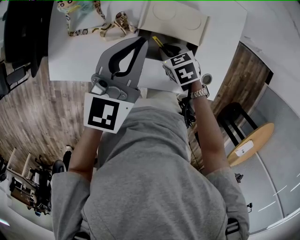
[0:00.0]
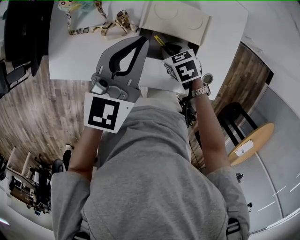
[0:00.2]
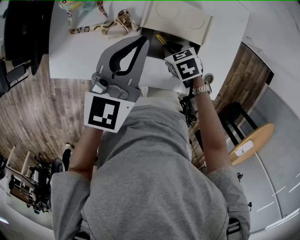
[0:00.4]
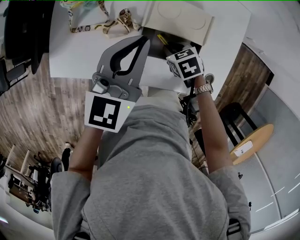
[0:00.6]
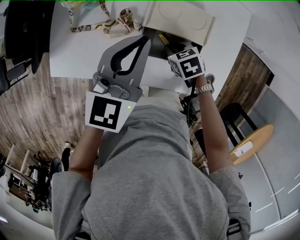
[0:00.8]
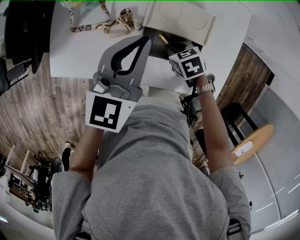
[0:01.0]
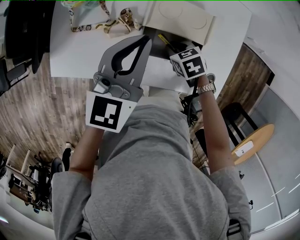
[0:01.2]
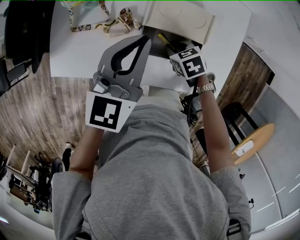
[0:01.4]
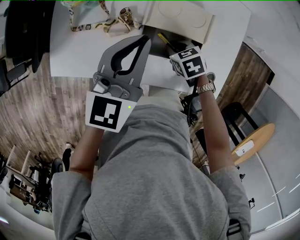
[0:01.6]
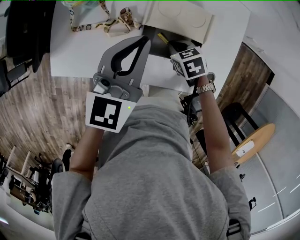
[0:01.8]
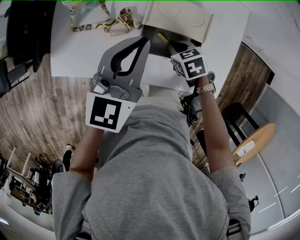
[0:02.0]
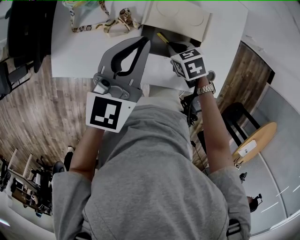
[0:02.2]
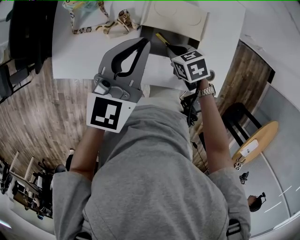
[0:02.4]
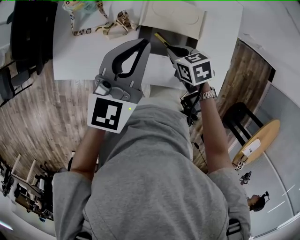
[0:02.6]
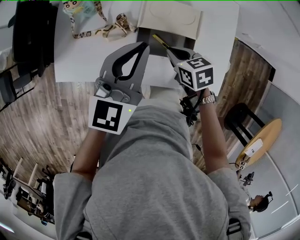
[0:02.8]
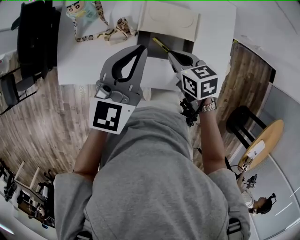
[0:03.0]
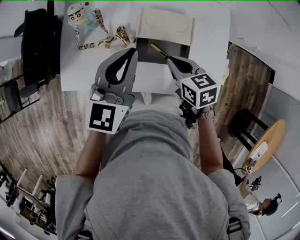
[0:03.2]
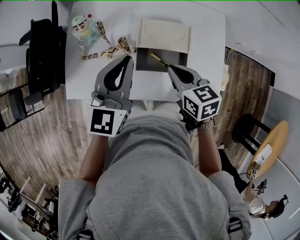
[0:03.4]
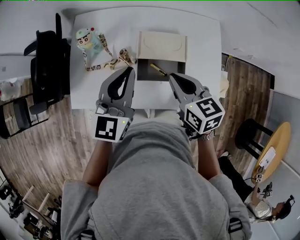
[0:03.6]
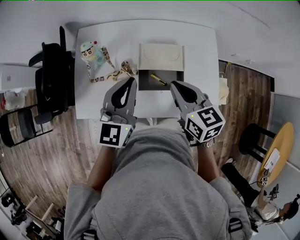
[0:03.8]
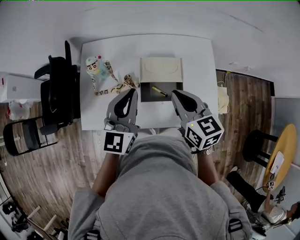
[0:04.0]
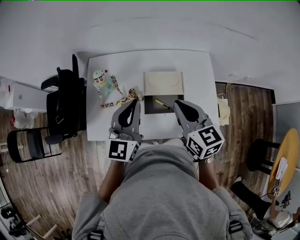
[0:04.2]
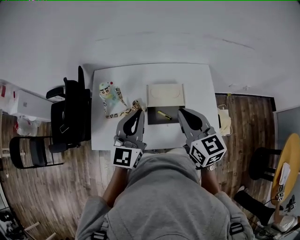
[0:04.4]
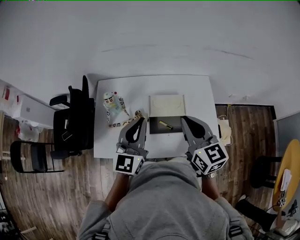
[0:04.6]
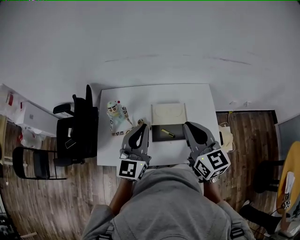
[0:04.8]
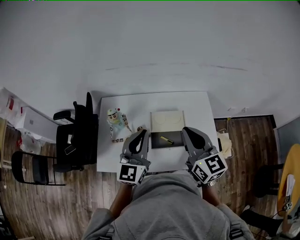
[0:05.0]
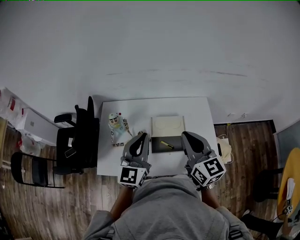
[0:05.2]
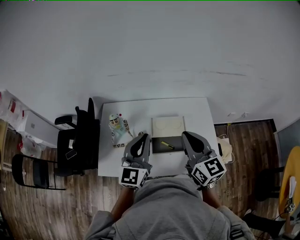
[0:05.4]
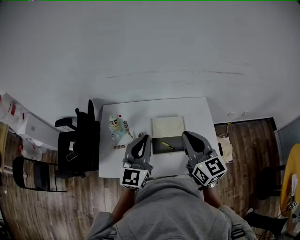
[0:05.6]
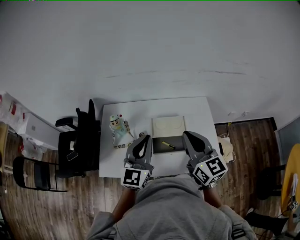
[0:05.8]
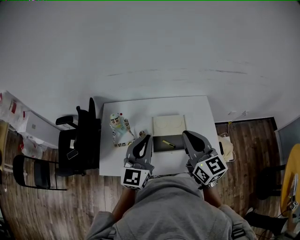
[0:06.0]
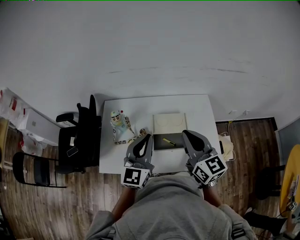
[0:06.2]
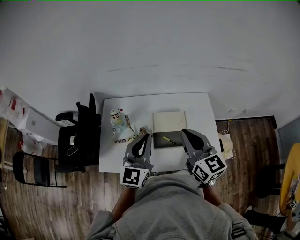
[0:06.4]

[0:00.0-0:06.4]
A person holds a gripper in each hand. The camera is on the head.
0:00.0 to 0:01.6: There are only small adjustments of the grippers.
0:01.6 to 0:03.2: The left gripper changes place by roughly 5 cm. The right gripper shifts approximately 15 cm upward, and changes its angle by some 30 degrees.
0:03.2 to 0:04.8: The left gripper moves upward, about 10 cm; the right gripper moves upward, about 25 cm, and tilts its fingers about 40 degrees upward.
0:04.8 to 0:06.4: There are only small adjustments of the grippers.

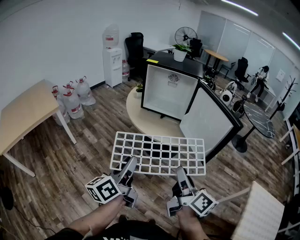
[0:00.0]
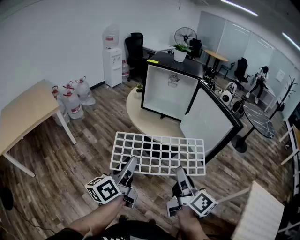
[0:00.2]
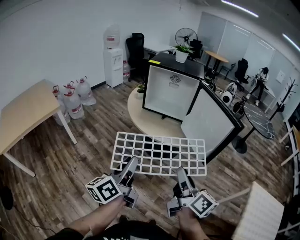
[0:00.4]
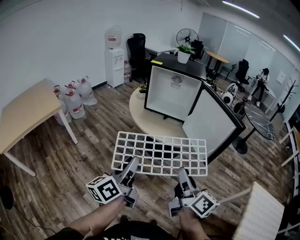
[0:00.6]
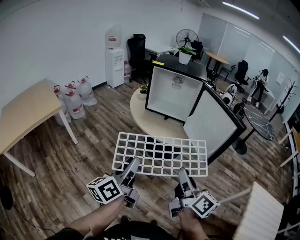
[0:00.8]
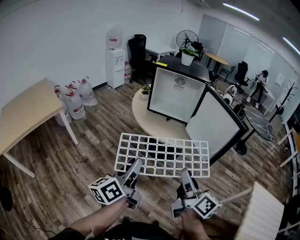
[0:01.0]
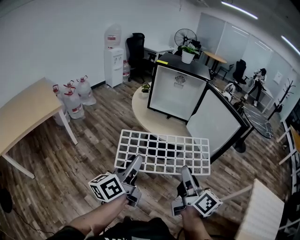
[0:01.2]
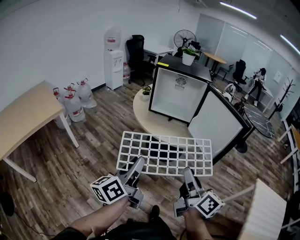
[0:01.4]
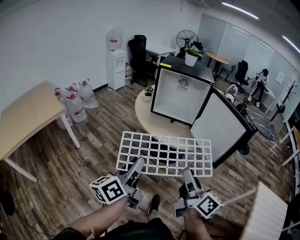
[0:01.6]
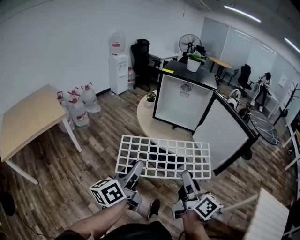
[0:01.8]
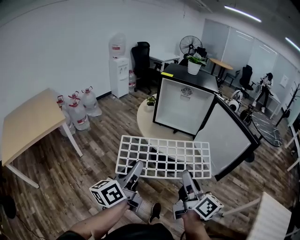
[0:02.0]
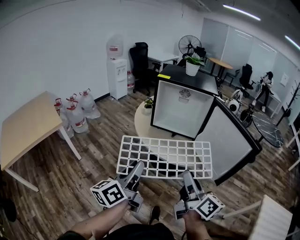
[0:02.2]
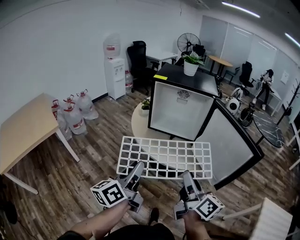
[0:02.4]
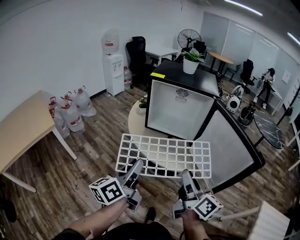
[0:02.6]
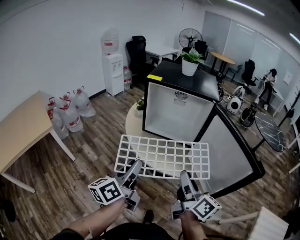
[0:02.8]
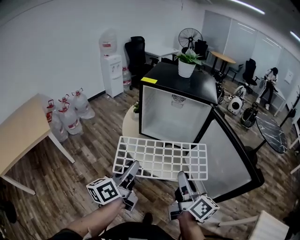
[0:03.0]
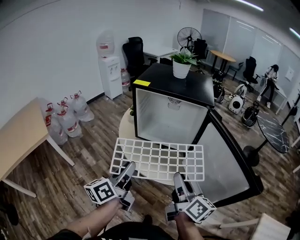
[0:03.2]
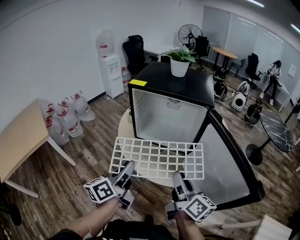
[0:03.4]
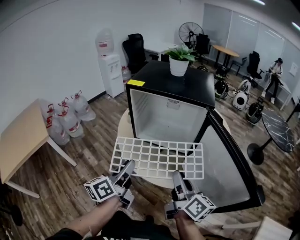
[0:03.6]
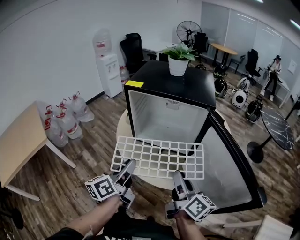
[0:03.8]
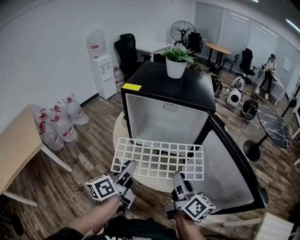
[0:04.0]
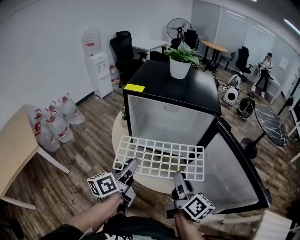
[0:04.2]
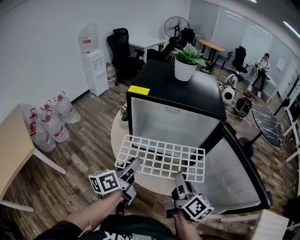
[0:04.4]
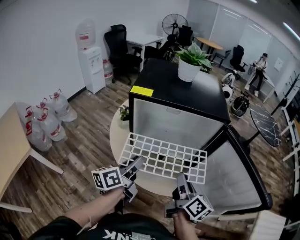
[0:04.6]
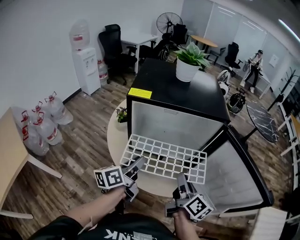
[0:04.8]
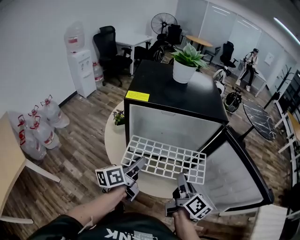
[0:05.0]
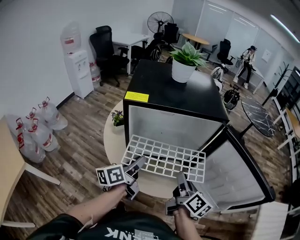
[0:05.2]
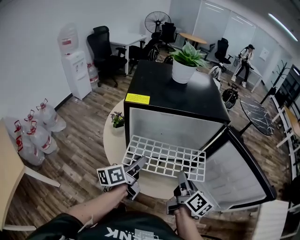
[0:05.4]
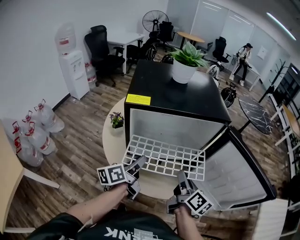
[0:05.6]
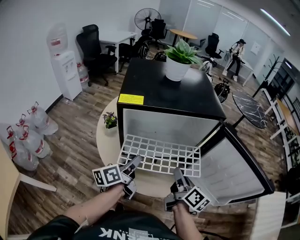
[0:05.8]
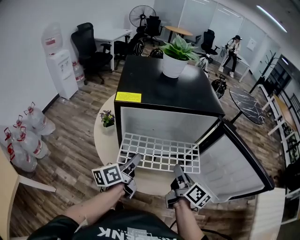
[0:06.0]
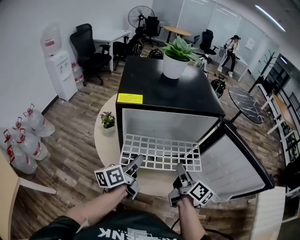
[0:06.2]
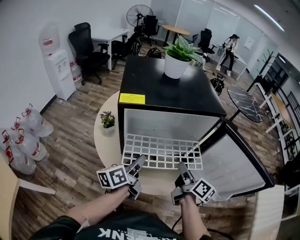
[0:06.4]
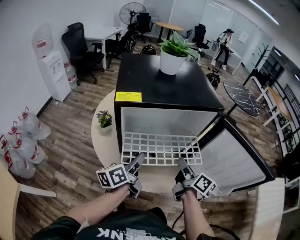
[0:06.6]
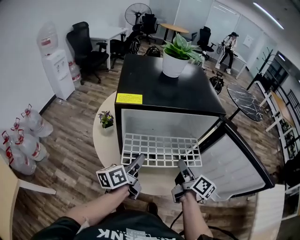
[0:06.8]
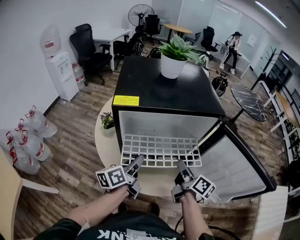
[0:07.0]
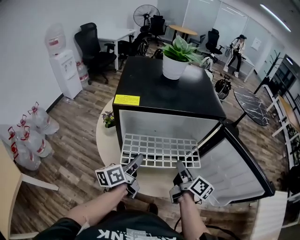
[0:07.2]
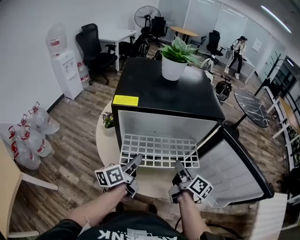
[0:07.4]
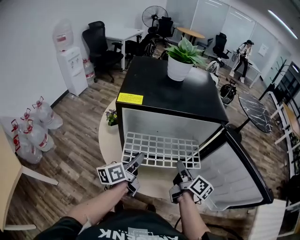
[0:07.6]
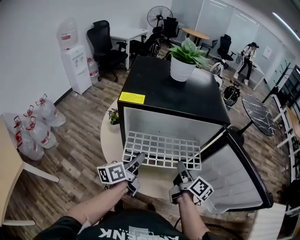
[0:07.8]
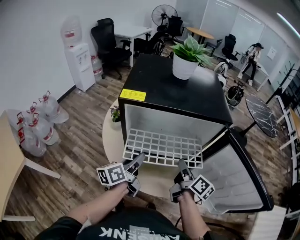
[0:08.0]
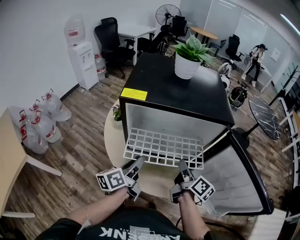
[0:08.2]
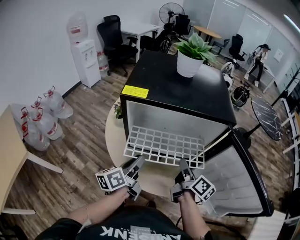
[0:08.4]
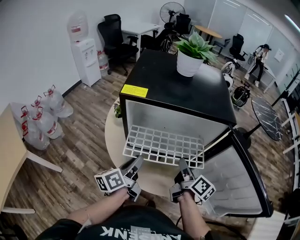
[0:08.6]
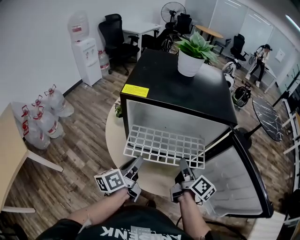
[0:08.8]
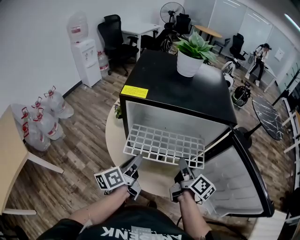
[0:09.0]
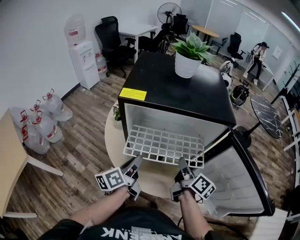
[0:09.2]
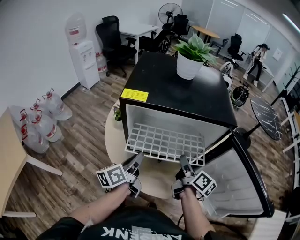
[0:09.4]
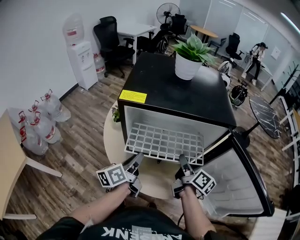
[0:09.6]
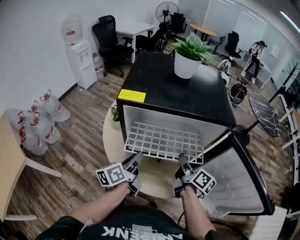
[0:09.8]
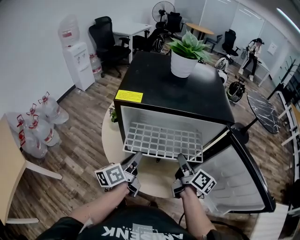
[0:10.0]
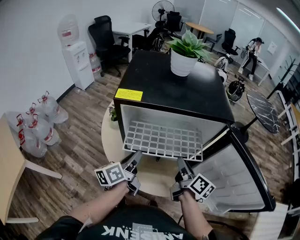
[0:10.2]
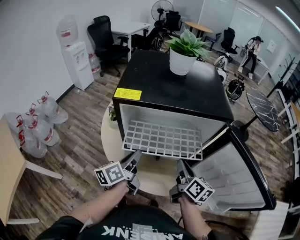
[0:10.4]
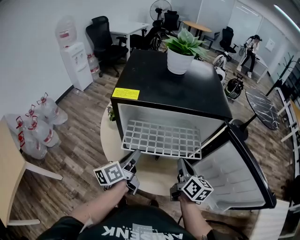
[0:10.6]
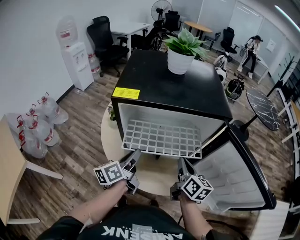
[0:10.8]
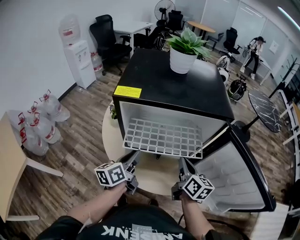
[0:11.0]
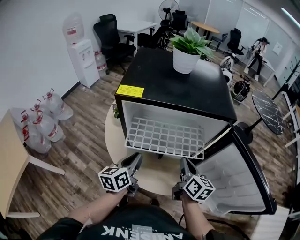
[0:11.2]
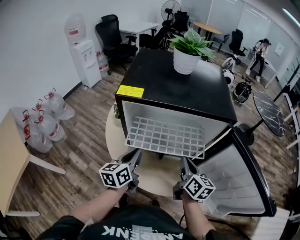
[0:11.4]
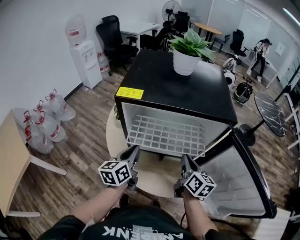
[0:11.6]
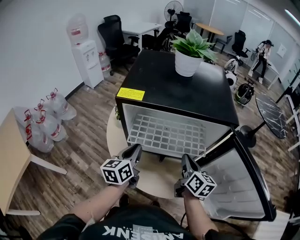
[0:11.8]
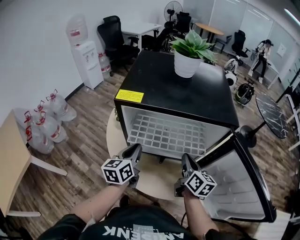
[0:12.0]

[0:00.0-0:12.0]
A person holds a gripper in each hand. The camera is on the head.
0:00.0 to 0:01.6: The grippers both shift to the left by approximately 10 cm.
0:01.6 to 0:03.0: Both grippers move forward, approximately 30 cm.
0:03.0 to 0:04.4: The left gripper moves forward, some 20 cm. The right gripper heads forward and downward, covering about 15 cm.
0:04.4 to 0:06.0: The grippers both shift forward by some 10 cm.
0:06.0 to 0:07.6: The right gripper shifts by some 5 cm.
0:07.6 to 0:10.4: The grippers move only a little.
0:10.4 to 0:12.0: The left gripper swivels about 30 degrees. The right gripper goes about 5 cm forward.

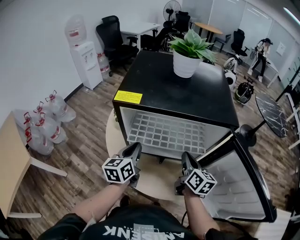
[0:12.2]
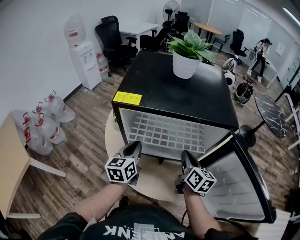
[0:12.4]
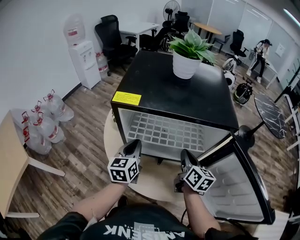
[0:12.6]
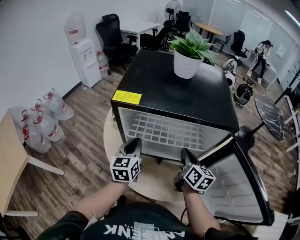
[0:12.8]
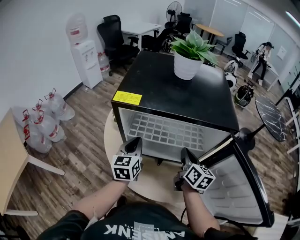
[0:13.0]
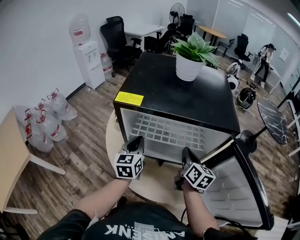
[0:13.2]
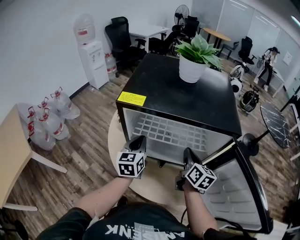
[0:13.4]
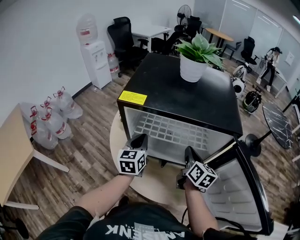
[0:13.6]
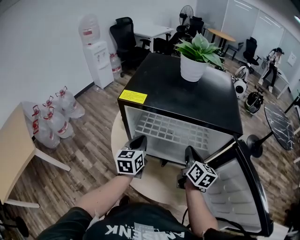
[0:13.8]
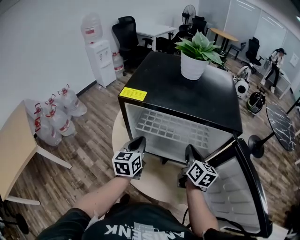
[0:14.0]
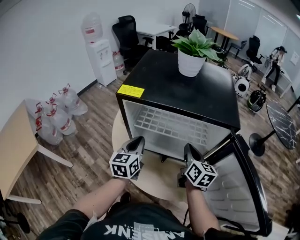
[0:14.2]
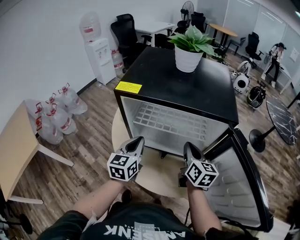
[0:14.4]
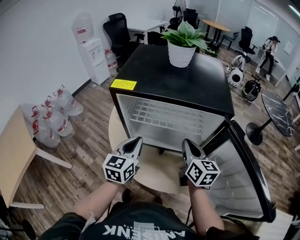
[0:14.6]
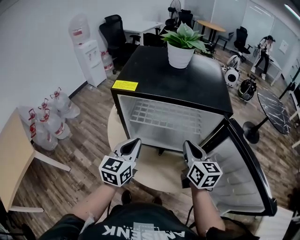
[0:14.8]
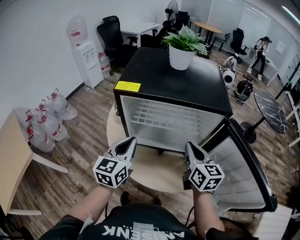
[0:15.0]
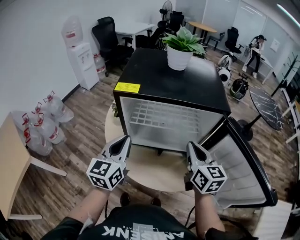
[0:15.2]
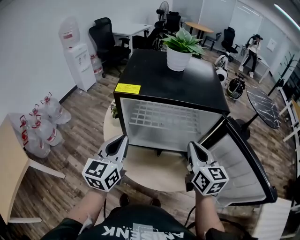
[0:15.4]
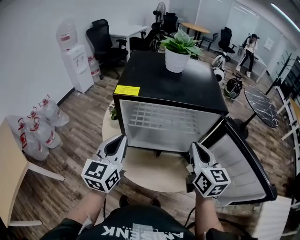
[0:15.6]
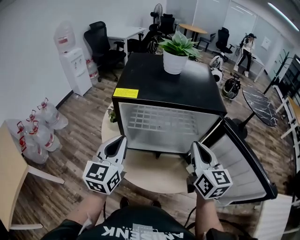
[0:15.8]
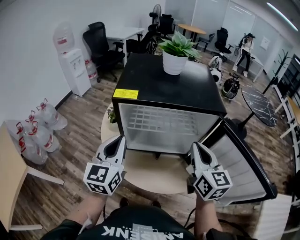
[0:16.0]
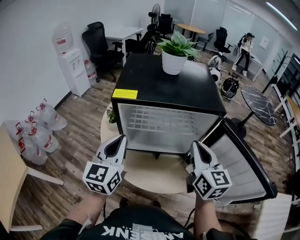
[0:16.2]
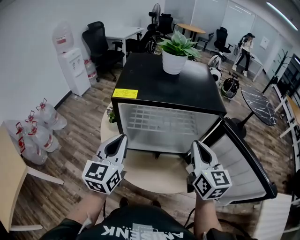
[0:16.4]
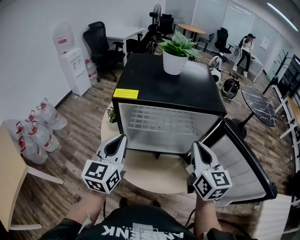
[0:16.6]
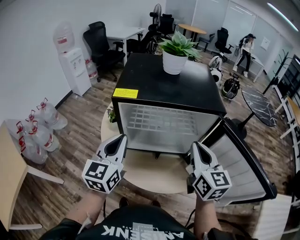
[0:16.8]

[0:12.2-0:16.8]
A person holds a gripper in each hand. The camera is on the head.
0:12.2 to 0:13.8: The right gripper moves forward, about 5 cm.
0:13.8 to 0:15.2: The left gripper is displaced upward and backward by approximately 15 cm. The right gripper travels backward and upward by about 15 cm.
0:15.2 to 0:16.8: The right gripper travels upward by roughly 5 cm.

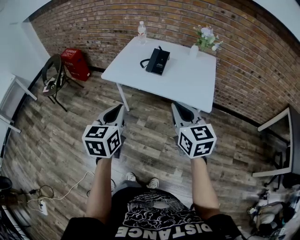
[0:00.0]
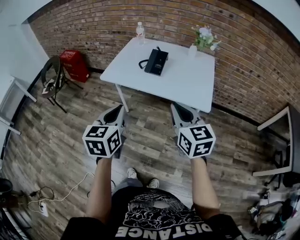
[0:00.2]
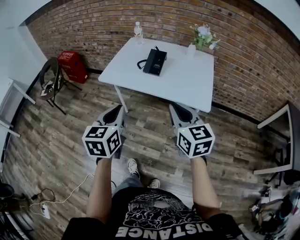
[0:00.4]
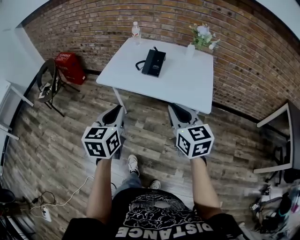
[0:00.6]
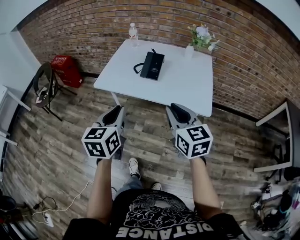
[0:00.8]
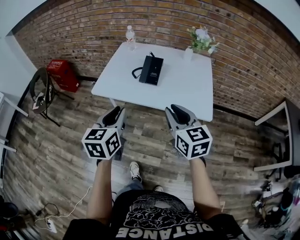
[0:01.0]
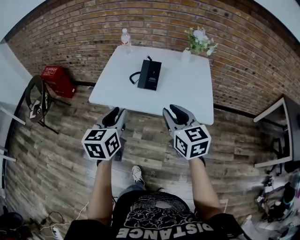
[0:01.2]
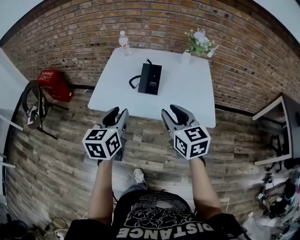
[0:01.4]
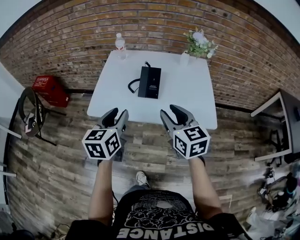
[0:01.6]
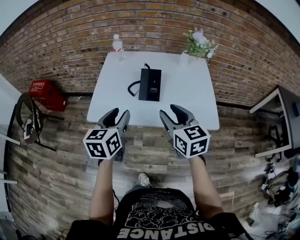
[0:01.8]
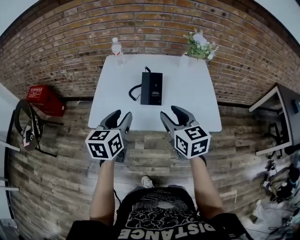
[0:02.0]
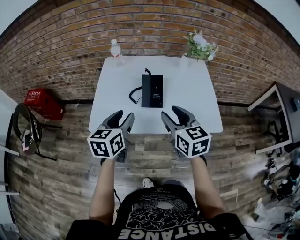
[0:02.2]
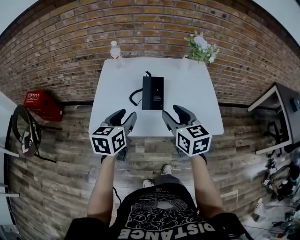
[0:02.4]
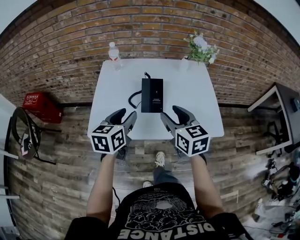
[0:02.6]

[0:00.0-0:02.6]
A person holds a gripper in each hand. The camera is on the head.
0:00.0 to 0:01.2: Both grippers move forward, roughly 15 cm. The left gripper opens its fingers.
0:01.2 to 0:02.6: The right gripper travels forward and to the left by some 20 cm, and opens; the left gripper is displaced forward by approximately 20 cm.
